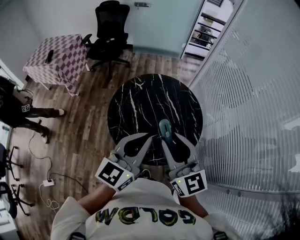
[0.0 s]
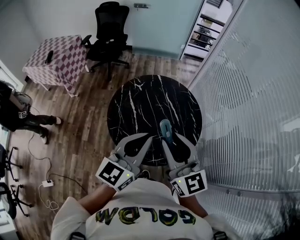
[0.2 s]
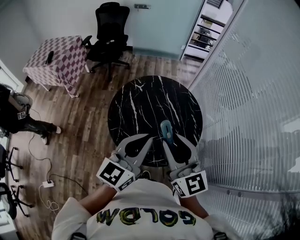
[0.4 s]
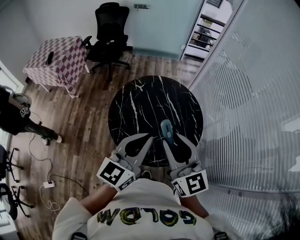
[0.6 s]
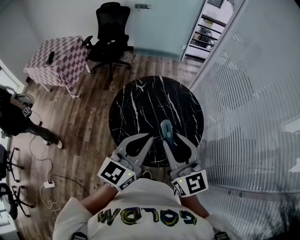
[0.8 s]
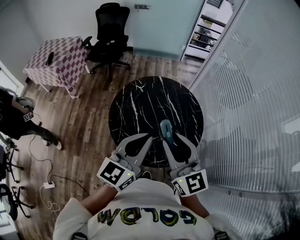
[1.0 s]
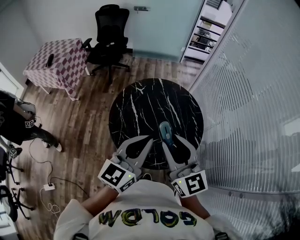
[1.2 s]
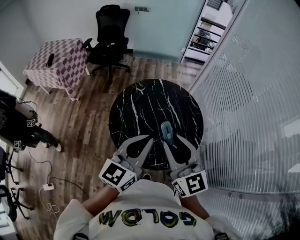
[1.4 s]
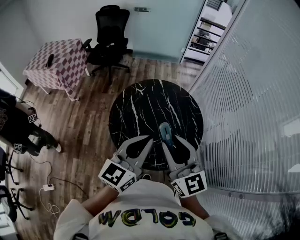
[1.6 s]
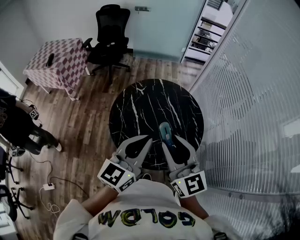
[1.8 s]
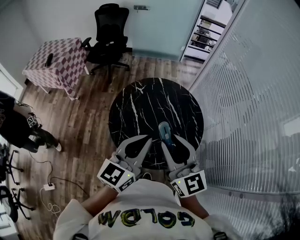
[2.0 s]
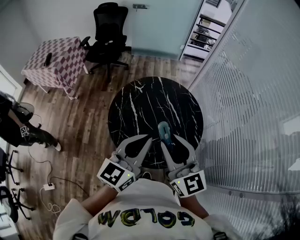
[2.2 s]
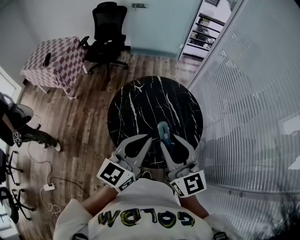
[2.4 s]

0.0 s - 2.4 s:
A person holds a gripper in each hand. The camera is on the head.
0.0 s - 1.2 s: Both grippers stay put.
1.2 s - 2.4 s: Both grippers stay about where they are.

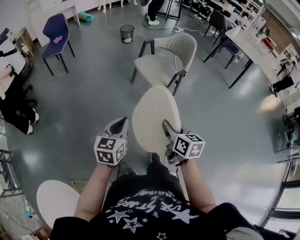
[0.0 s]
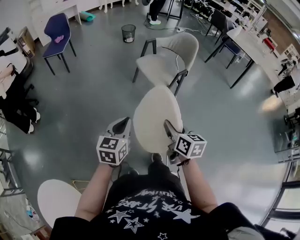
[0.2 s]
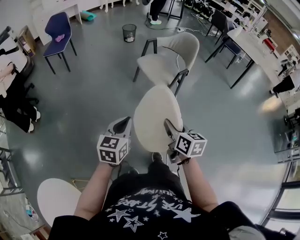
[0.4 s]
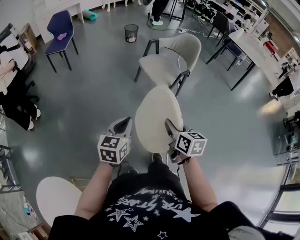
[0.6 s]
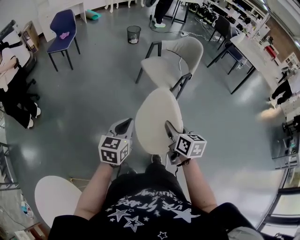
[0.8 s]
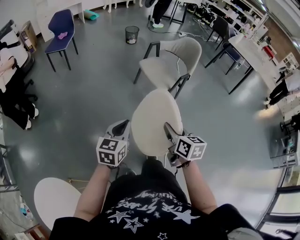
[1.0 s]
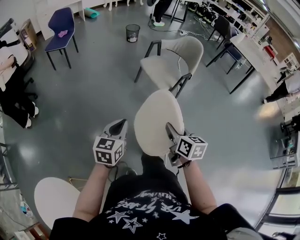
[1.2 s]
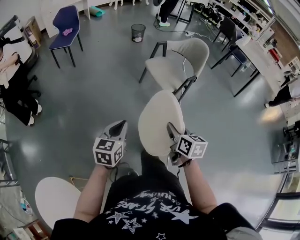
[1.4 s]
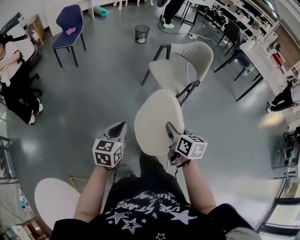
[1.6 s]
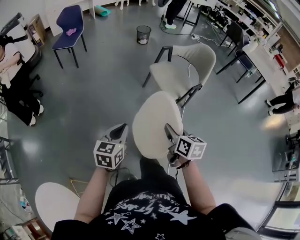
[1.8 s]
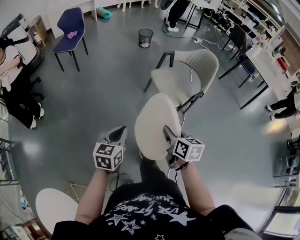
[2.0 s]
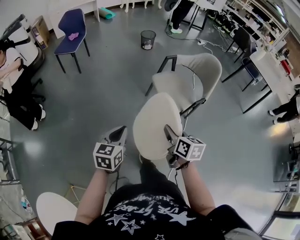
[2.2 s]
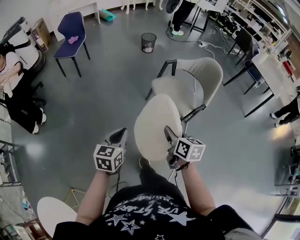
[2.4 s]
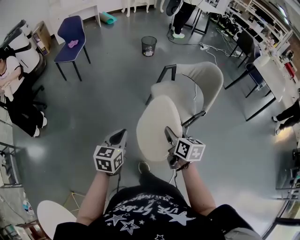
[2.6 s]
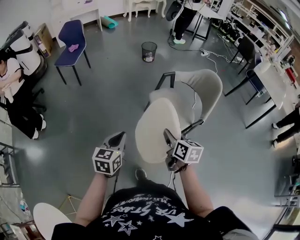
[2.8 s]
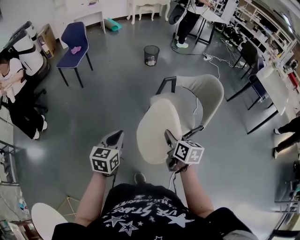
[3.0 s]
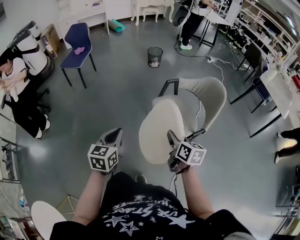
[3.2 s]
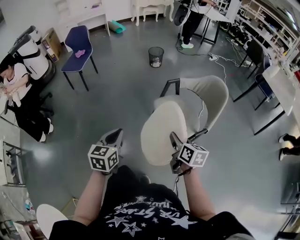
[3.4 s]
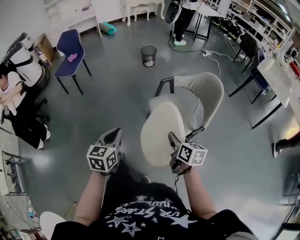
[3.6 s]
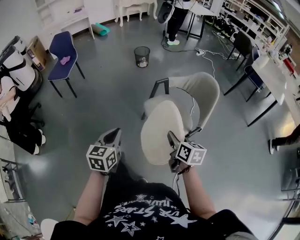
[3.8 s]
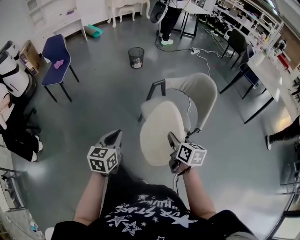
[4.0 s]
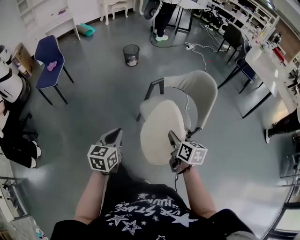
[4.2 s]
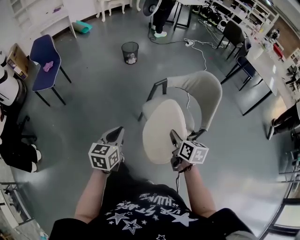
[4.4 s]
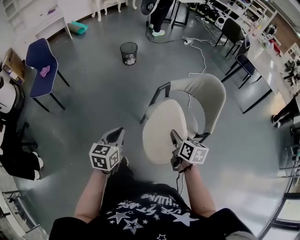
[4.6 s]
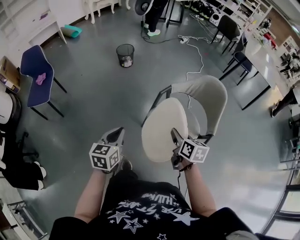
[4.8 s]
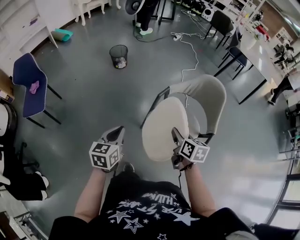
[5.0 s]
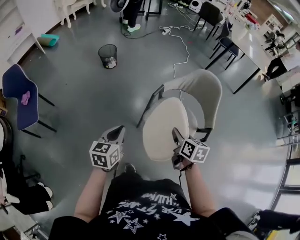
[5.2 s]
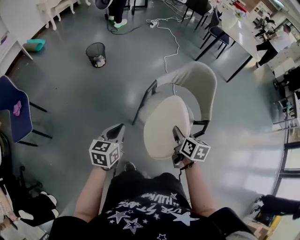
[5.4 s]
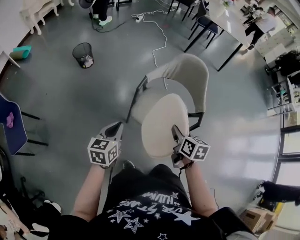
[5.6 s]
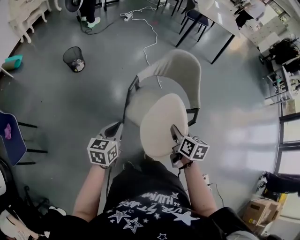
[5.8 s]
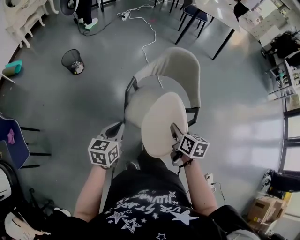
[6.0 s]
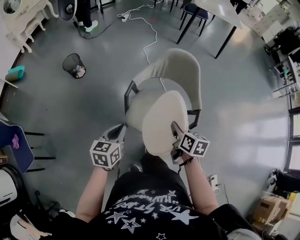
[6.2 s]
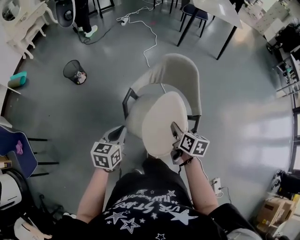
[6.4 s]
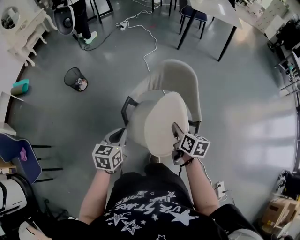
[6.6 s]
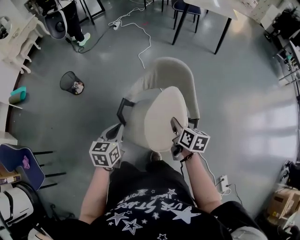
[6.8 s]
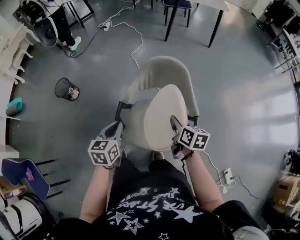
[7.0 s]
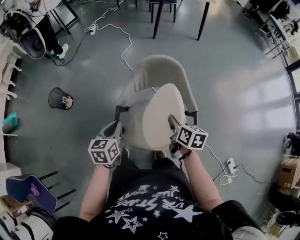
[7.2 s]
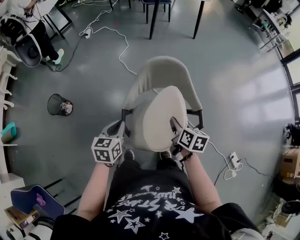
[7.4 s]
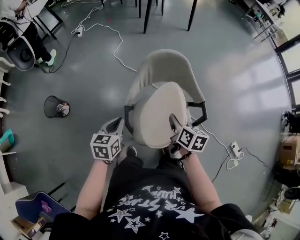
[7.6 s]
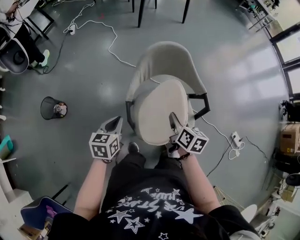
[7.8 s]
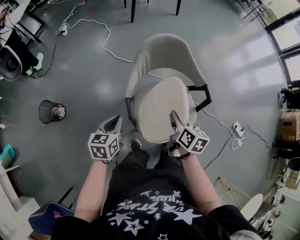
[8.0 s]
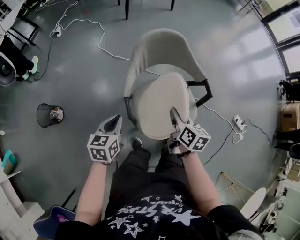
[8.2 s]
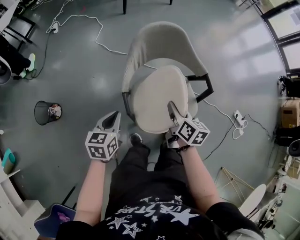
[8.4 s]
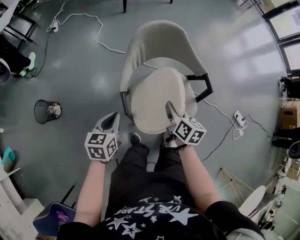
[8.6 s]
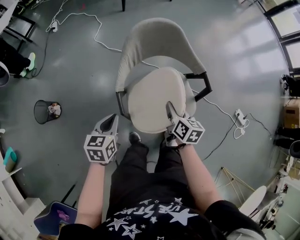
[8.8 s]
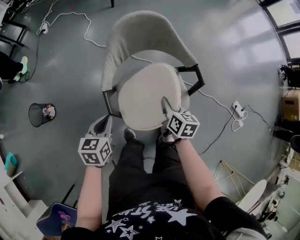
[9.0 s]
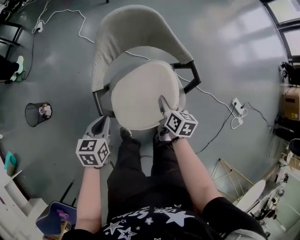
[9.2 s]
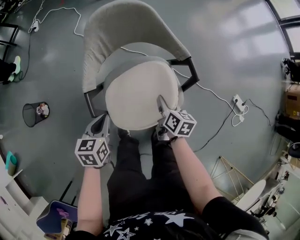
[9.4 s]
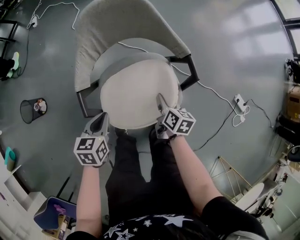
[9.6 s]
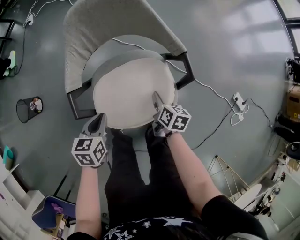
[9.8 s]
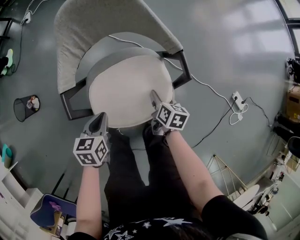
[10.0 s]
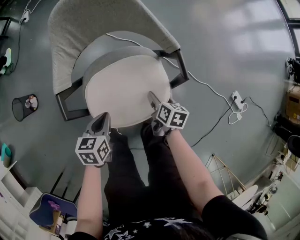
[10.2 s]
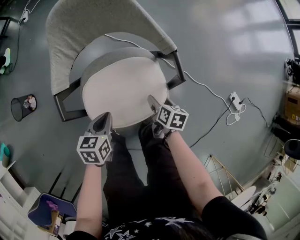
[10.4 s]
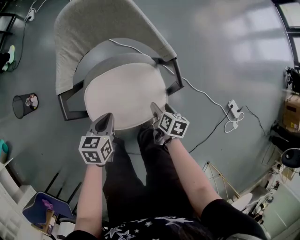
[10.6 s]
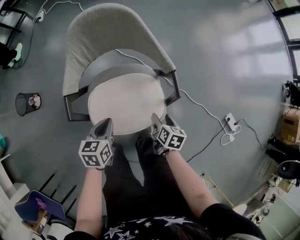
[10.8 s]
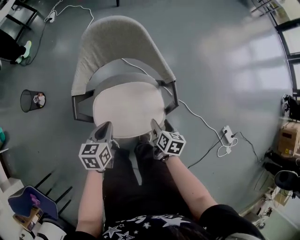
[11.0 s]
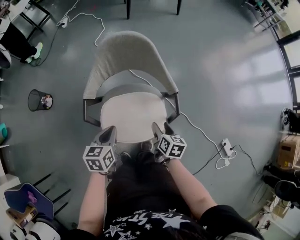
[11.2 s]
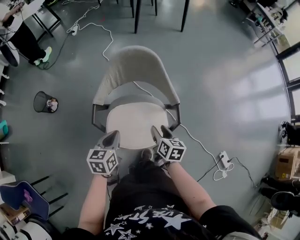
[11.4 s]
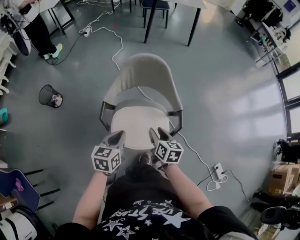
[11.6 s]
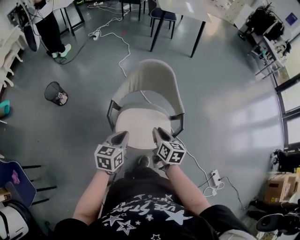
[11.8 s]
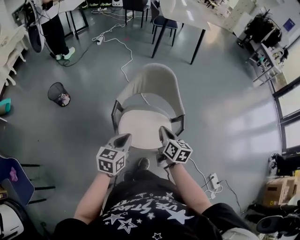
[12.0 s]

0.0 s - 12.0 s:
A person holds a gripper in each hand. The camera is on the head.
0.0 s - 1.6 s: The right gripper moves about 5 cm, while the left gripper shifts about 10 cm to the left.
1.6 s - 3.0 s: The two grippers go about 30 cm forward.
3.0 s - 4.4 s: The left gripper travels forward by approximately 20 cm. The right gripper moves forward, some 10 cm.
4.4 s - 6.0 s: The left gripper moves about 20 cm, and rotates about 40 degrees. The right gripper rotates some 40 degrees.
6.0 s - 7.6 s: The right gripper moves forward, about 15 cm, and changes its angle by roughly 30 degrees. Meanwhile the left gripper heads forward, covering about 25 cm, and changes its angle by about 30 degrees.
7.6 s - 9.0 s: The right gripper heads downward, covering about 10 cm. Meanwhile the left gripper heads downward, covering approximately 5 cm.
9.0 s - 10.4 s: The right gripper moves downward and to the right, roughly 20 cm, and opens. Meanwhile the left gripper heads to the right and downward, covering some 20 cm.
10.4 s - 12.0 s: The two grippers go roughly 30 cm upward. The left gripper changes its angle by roughly 30 degrees. The right gripper rotates about 40 degrees, and closes its fingers.

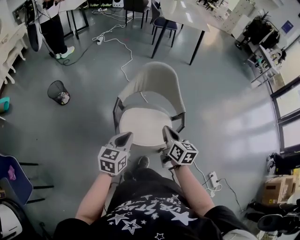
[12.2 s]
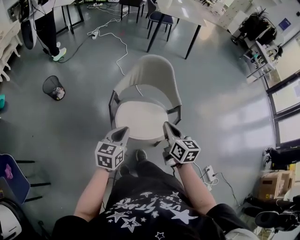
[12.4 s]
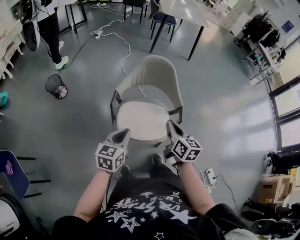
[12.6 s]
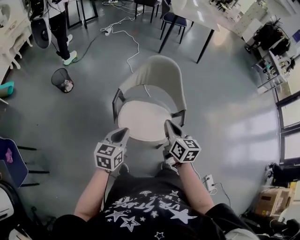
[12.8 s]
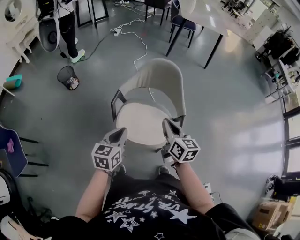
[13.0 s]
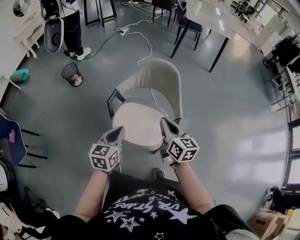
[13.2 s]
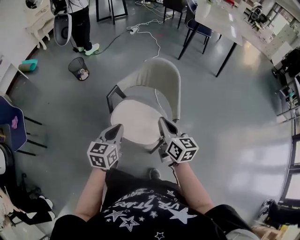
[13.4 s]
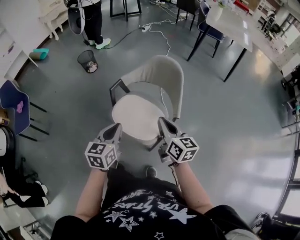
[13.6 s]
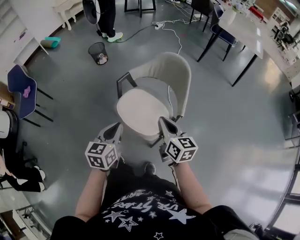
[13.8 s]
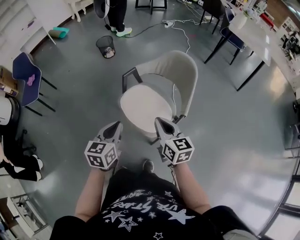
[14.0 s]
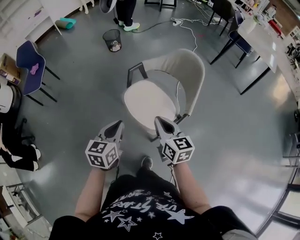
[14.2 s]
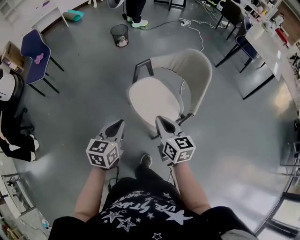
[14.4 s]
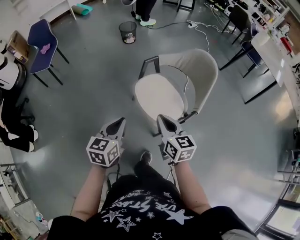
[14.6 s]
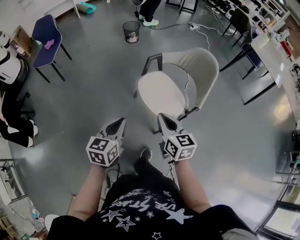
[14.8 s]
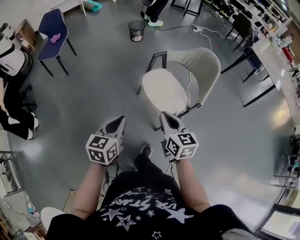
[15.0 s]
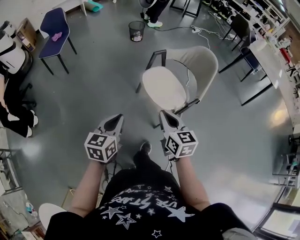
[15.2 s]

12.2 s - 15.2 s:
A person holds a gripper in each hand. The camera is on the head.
12.2 s - 13.8 s: The left gripper changes place by some 15 cm, and turns by some 40 degrees. Meanwhile the right gripper ends up roughly 10 cm from where it was, and rotates roughly 40 degrees.
13.8 s - 15.2 s: Both grippers travel together backward and to the left, roughly 25 cm. The right gripper rotates approximately 20 degrees.

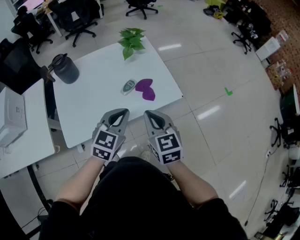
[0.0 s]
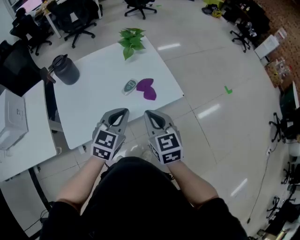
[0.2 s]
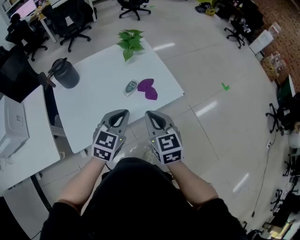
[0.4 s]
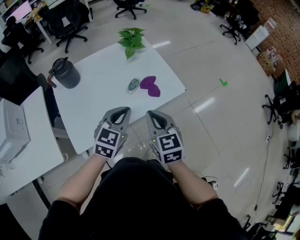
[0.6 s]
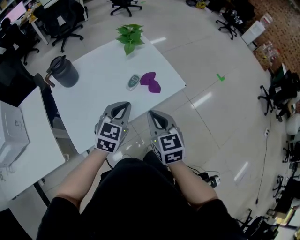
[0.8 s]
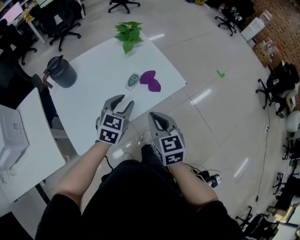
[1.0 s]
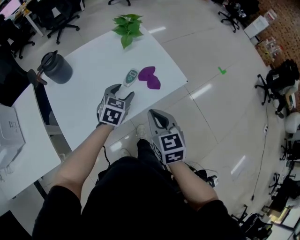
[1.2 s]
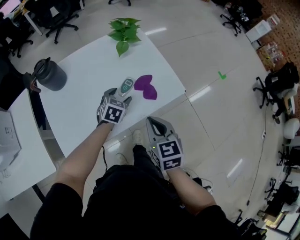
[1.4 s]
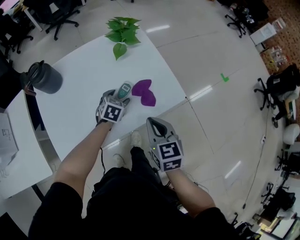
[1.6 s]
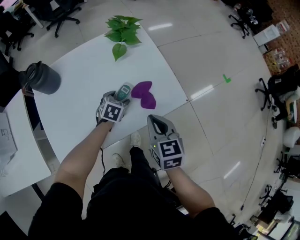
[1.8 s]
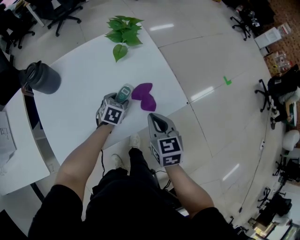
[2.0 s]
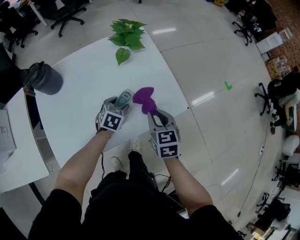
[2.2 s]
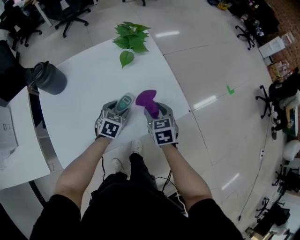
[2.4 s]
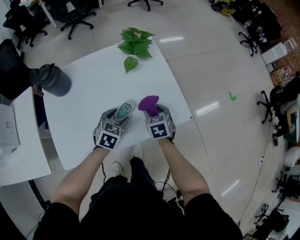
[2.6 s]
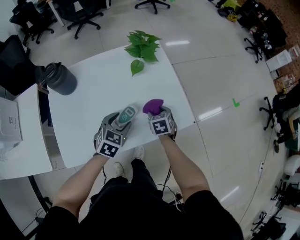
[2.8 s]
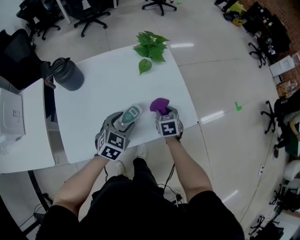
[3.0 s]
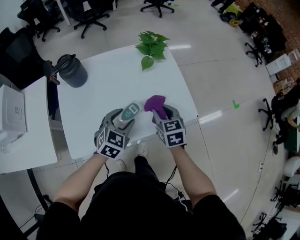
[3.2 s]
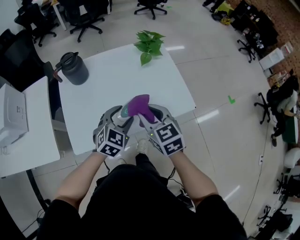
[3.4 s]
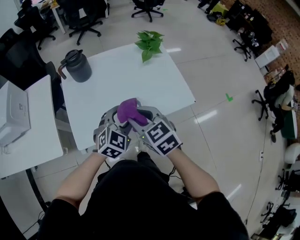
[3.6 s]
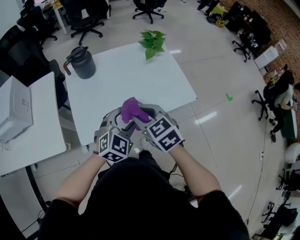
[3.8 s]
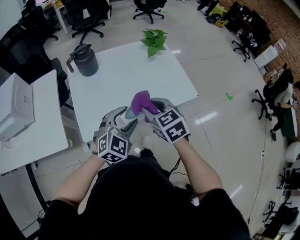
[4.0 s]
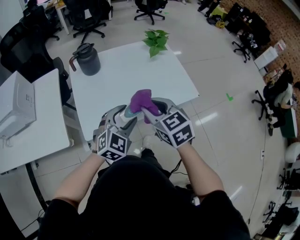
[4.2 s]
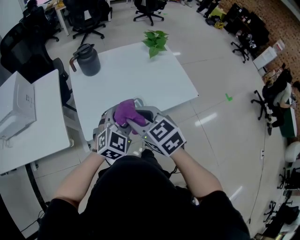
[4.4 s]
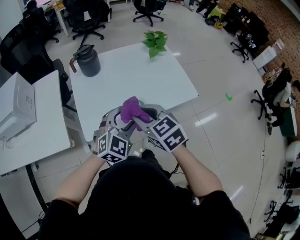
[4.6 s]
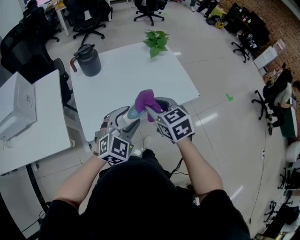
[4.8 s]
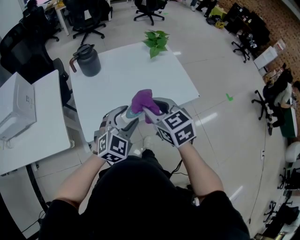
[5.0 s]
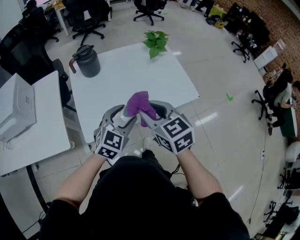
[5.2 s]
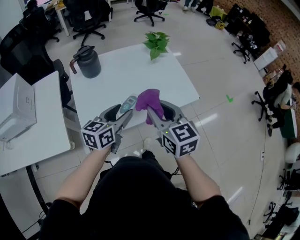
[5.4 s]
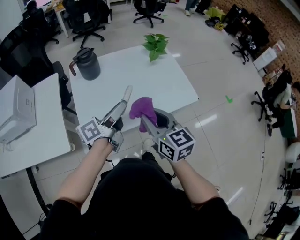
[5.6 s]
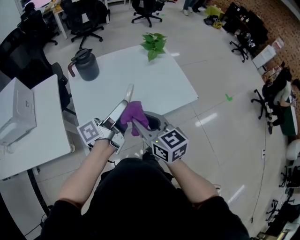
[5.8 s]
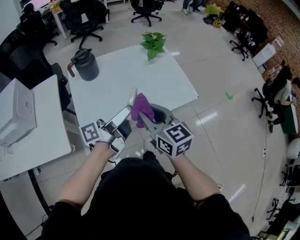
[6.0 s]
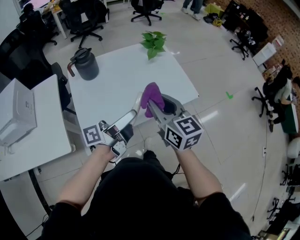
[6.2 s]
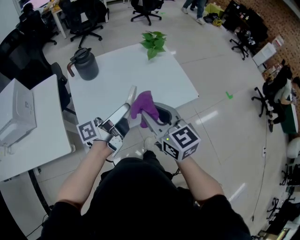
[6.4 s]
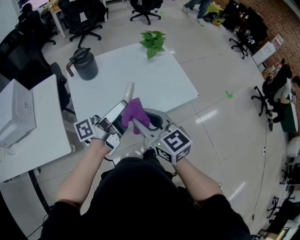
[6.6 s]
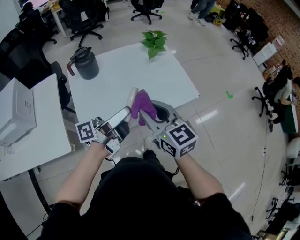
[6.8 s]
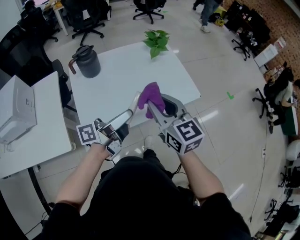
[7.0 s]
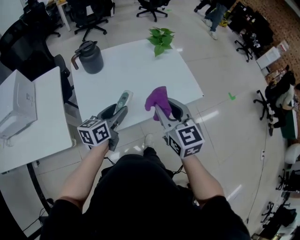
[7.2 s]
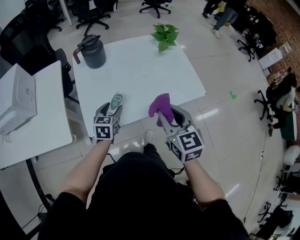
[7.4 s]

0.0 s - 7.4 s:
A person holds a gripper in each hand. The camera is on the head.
0.0 s - 1.4 s: The right gripper heads downward, covering about 5 cm. The left gripper is displaced downward and forward by about 25 cm, swivels roughly 20 degrees, and opens.
1.4 s - 3.0 s: The right gripper heads forward and downward, covering approximately 25 cm, and opens up. Meanwhile the left gripper shifts approximately 5 cm upward.
3.0 s - 4.4 s: The left gripper is displaced backward, upward and to the left by about 25 cm, and rotates about 30 degrees. Meanwhile the right gripper moves backward, to the left and upward, about 50 cm, and changes its angle by some 40 degrees.
4.4 s - 6.0 s: The left gripper goes some 5 cm upward, and rotates around the line of its fingers by roughly 90 degrees, counterclockwise from behind. Meanwhile the right gripper shifts roughly 5 cm to the right, and turns by some 30 degrees.
6.0 s - 7.4 s: The left gripper travels downward and to the left by approximately 20 cm, and points its fingers some 50 degrees further downward.
